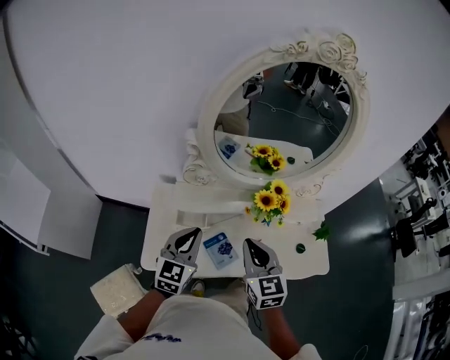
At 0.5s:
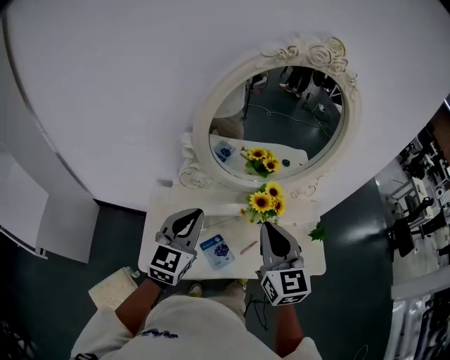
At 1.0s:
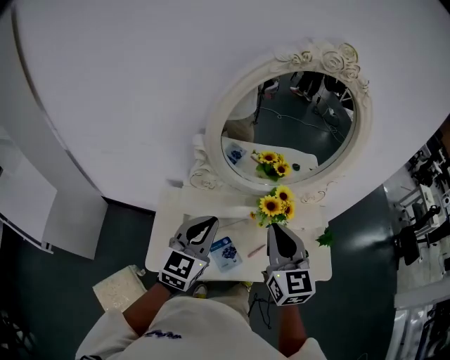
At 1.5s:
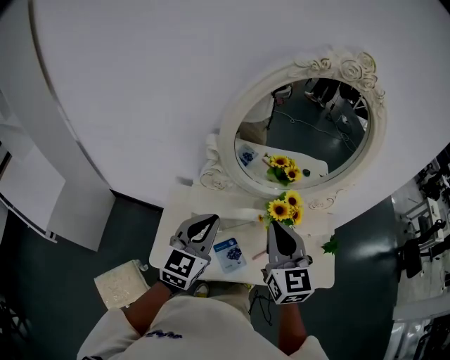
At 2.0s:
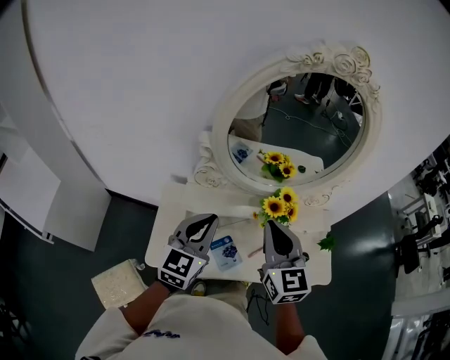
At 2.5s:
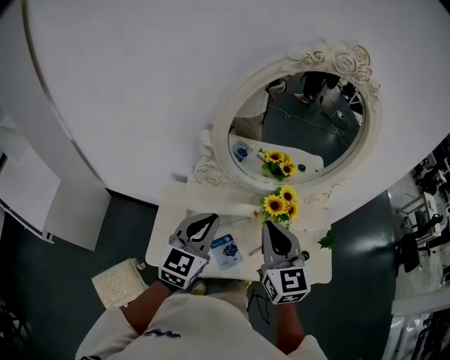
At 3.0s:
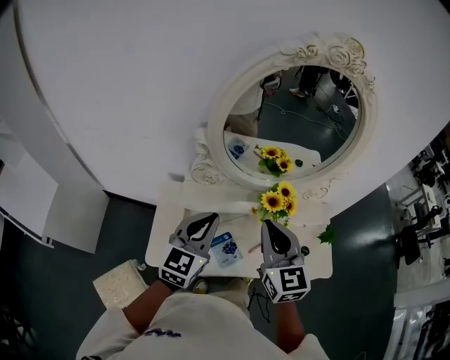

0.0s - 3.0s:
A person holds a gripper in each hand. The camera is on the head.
0.0s - 1.5s: Both grippers travel together upward, some 10 cm.
1.5s - 3.0s: The grippers stay close to where they were, moving slightly.

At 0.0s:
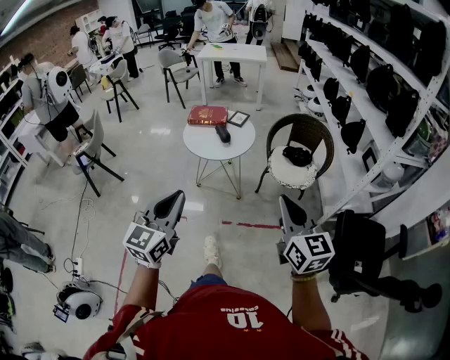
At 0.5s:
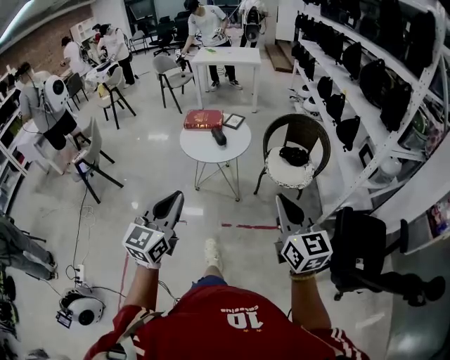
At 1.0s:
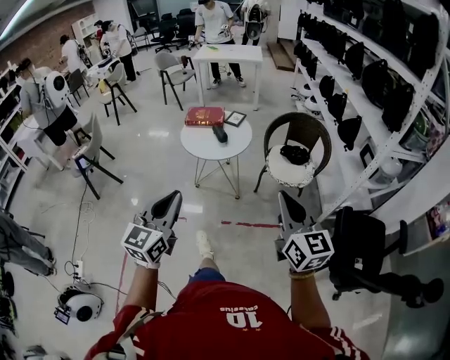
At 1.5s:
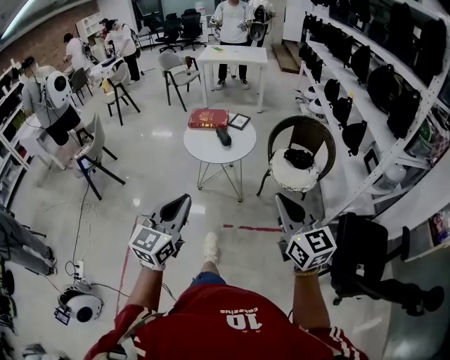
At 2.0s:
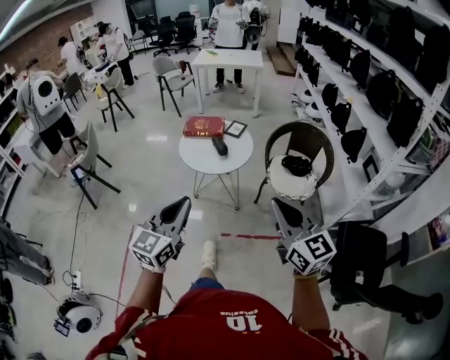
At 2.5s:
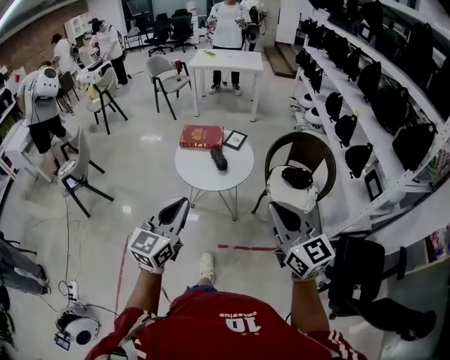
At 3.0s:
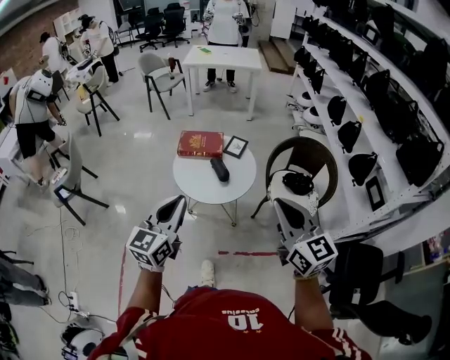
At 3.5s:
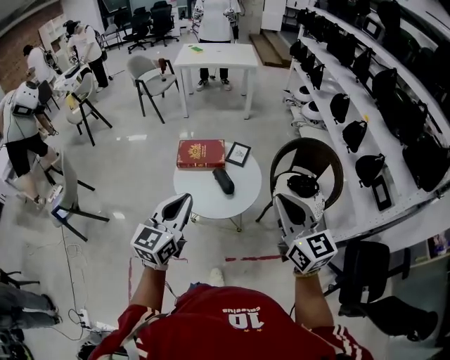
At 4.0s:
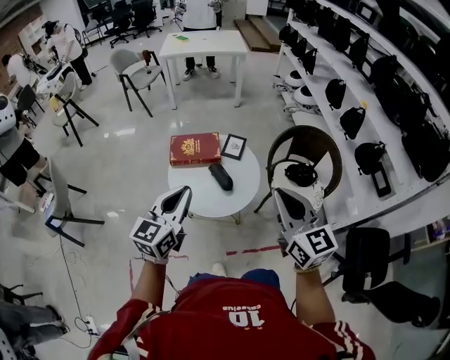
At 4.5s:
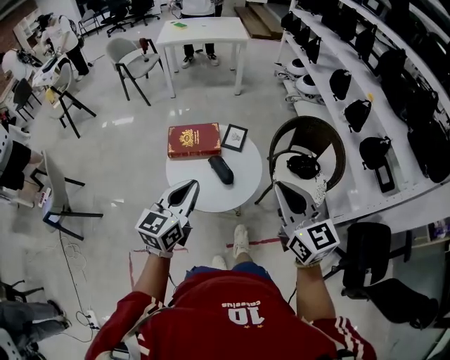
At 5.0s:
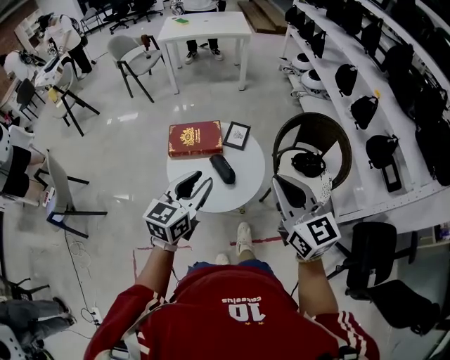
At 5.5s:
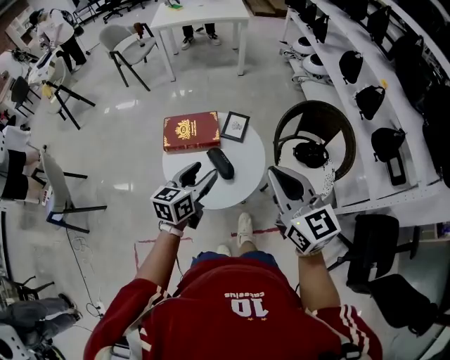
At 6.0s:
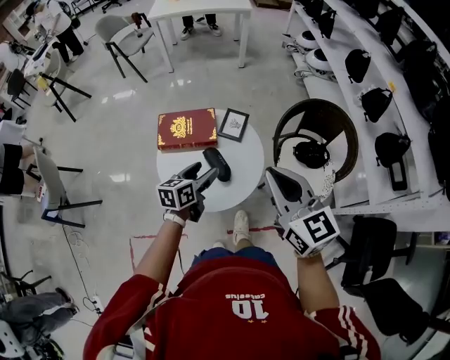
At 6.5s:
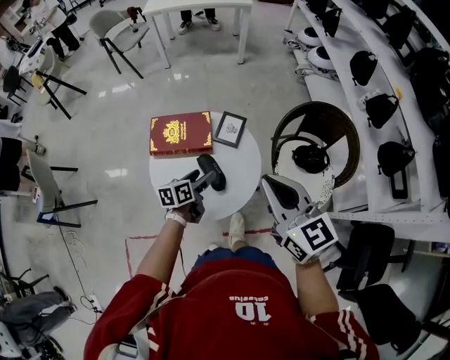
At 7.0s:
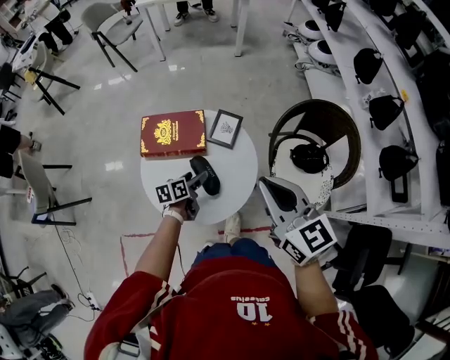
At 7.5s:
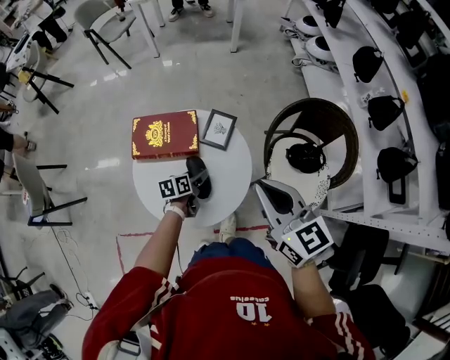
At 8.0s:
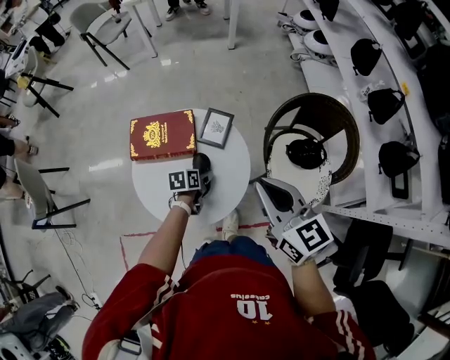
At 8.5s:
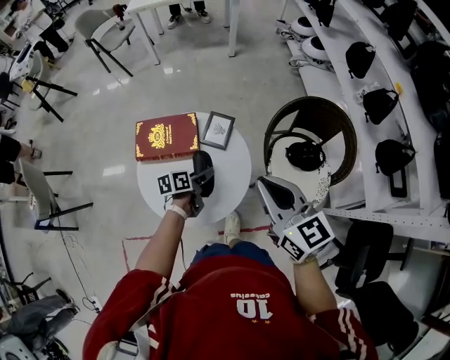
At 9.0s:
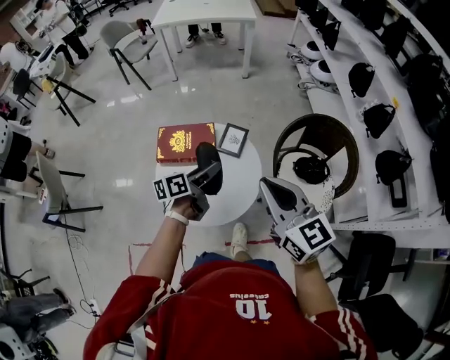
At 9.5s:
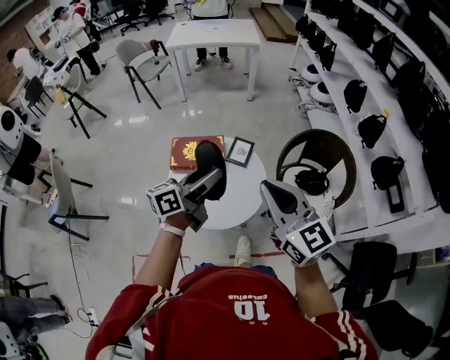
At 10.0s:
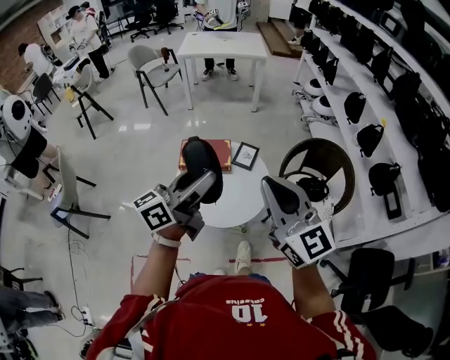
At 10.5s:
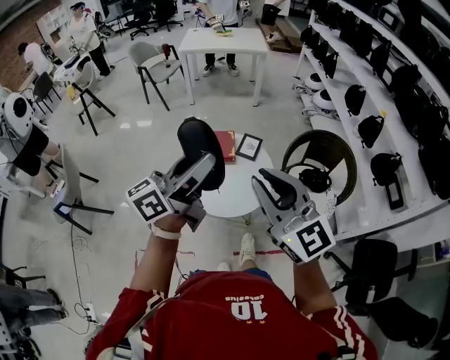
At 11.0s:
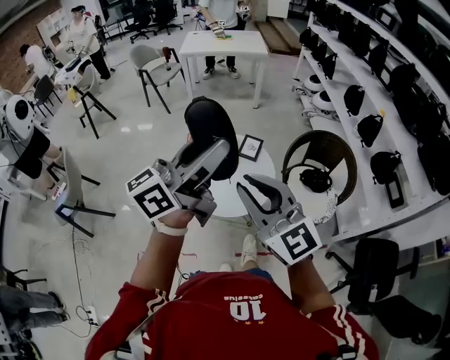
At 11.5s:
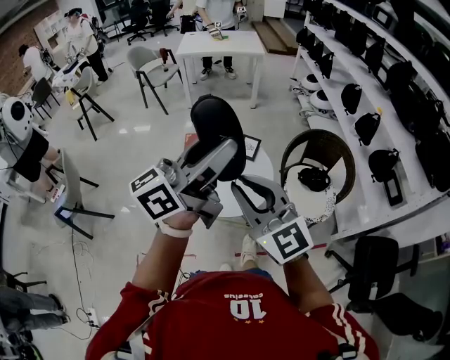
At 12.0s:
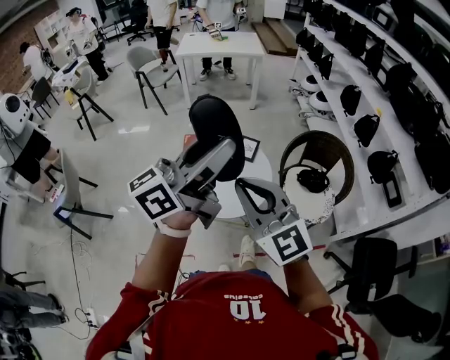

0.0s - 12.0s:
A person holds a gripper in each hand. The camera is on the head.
0.0s - 2.0s: The two grippers go roughly 5 cm forward.
2.0s - 4.0s: The two grippers go roughly 40 cm forward.
4.0s - 6.0s: The left gripper is displaced downward and forward by some 30 cm, changes its angle by some 30 degrees, and opens its fingers. The right gripper goes roughly 15 cm forward.
6.0s - 8.0s: The left gripper is displaced downward and forward by some 25 cm, and turns by some 30 degrees. The right gripper travels forward and downward by roughly 15 cm.
8.0s - 10.0s: The right gripper heads upward, backward and to the left, covering some 30 cm, and swivels about 30 degrees. The left gripper moves upward and backward, some 60 cm, and angles its fingers upward, by about 70 degrees.
10.0s - 12.0s: The right gripper goes roughly 10 cm to the left and backward. Meanwhile the left gripper is displaced upward and backward by about 15 cm.

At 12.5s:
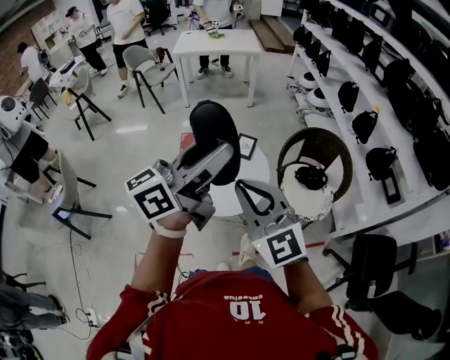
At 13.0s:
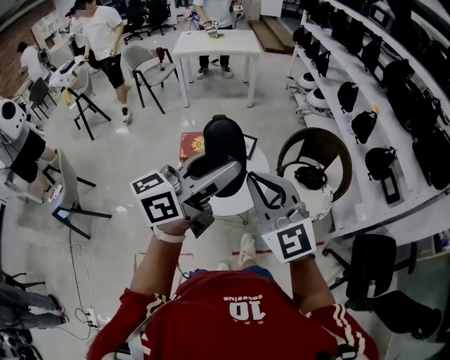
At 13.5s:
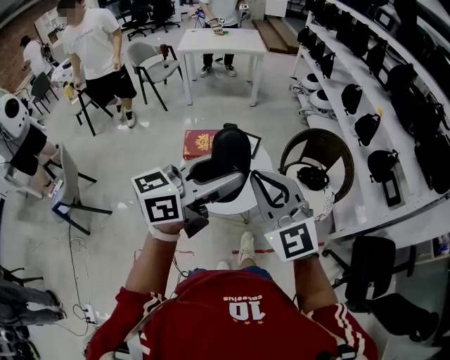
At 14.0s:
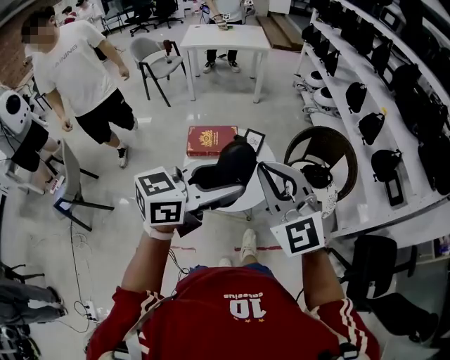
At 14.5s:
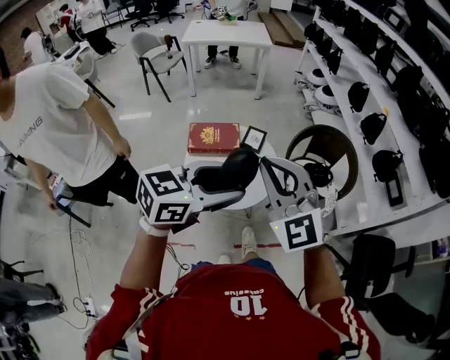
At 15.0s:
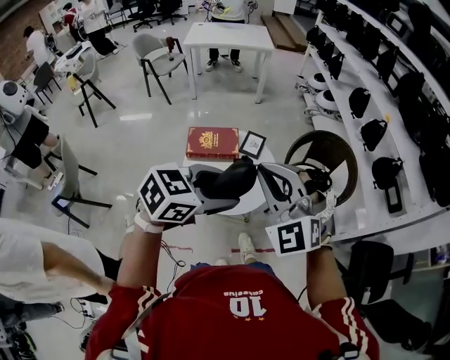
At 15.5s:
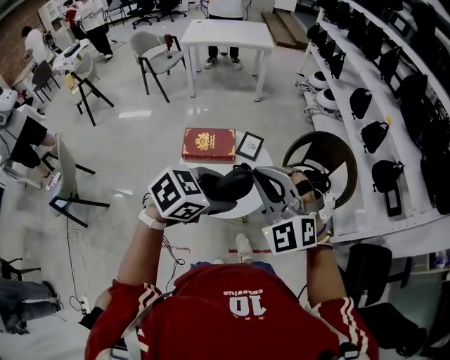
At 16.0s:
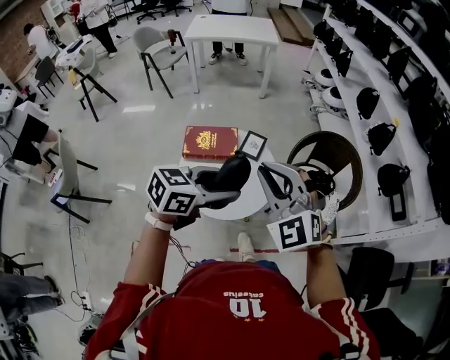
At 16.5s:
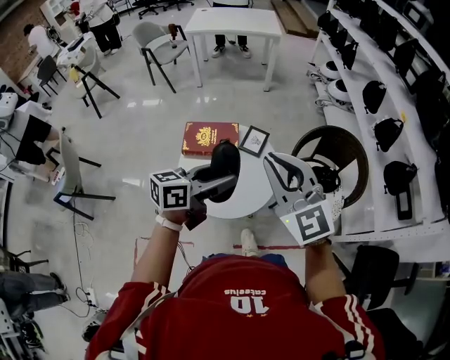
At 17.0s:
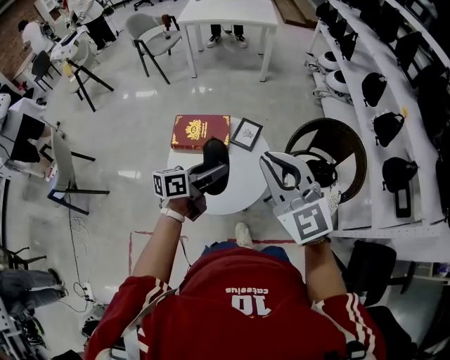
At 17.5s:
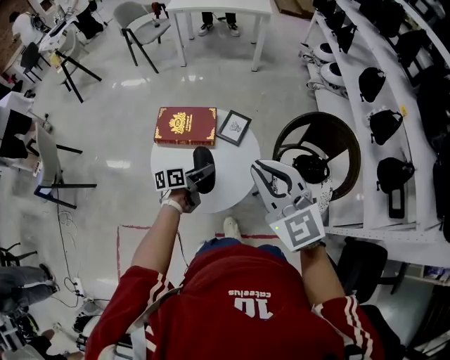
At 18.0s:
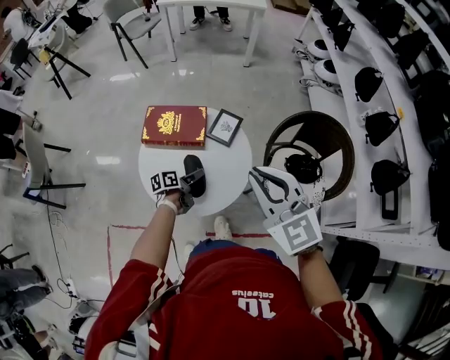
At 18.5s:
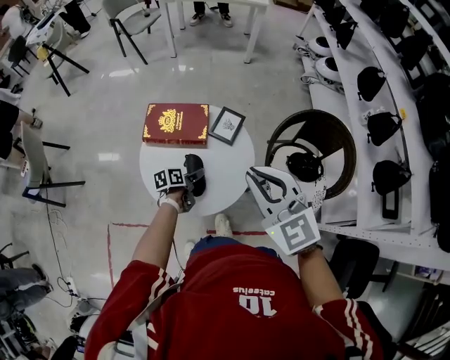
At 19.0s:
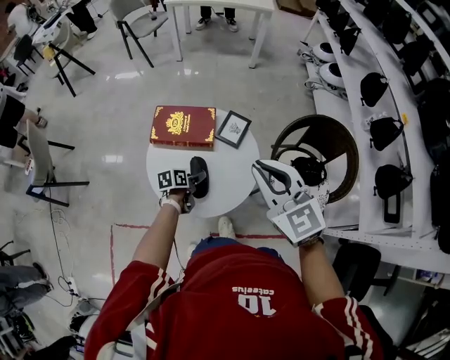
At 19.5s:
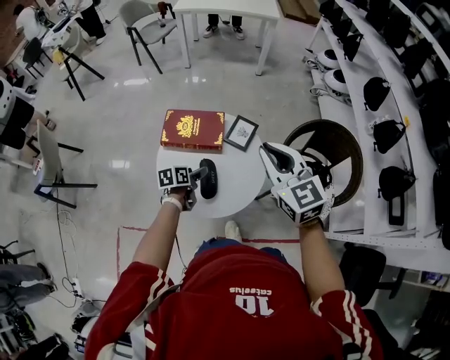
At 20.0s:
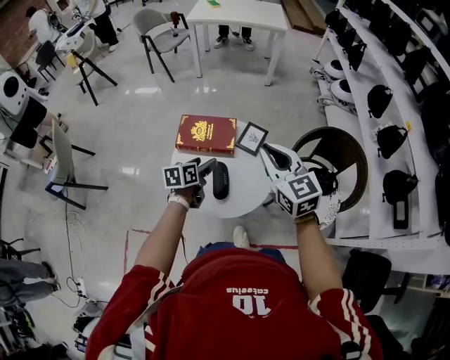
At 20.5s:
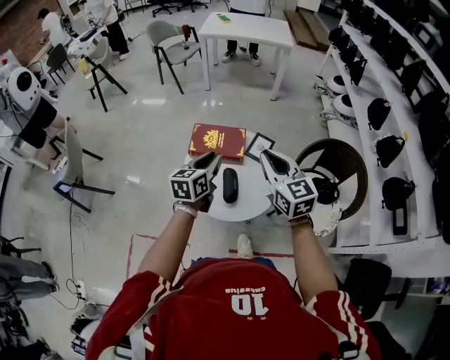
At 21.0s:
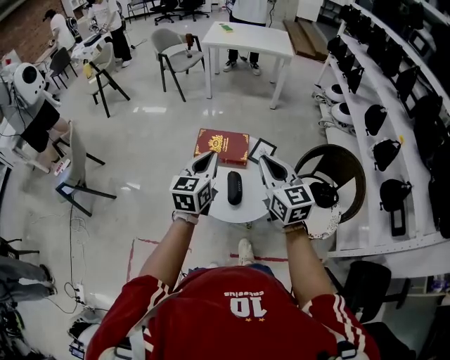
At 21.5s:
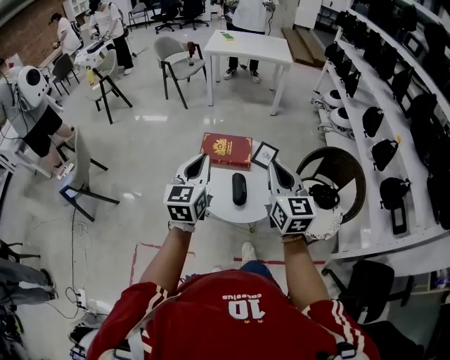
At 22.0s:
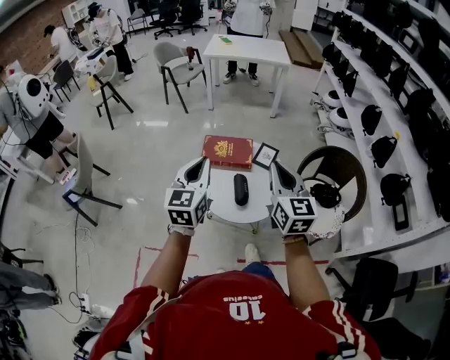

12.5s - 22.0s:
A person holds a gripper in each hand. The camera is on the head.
12.5s - 14.5s: The left gripper is displaced downward by some 10 cm, and tips its fingers downward by some 30 degrees.
14.5s - 16.5s: The left gripper heads forward and downward, covering about 20 cm, and rotates roughly 30 degrees; the right gripper goes some 10 cm forward.
16.5s - 18.0s: The right gripper moves downward, to the right and forward, approximately 15 cm, while the left gripper travels downward by approximately 40 cm, and twists some 40 degrees counterclockwise, seen from behind.
18.0s - 20.0s: The right gripper is displaced to the left and forward by about 5 cm; the left gripper shifts some 15 cm upward and to the left, and rotates roughly 30 degrees.
20.0s - 22.0s: The right gripper shifts about 15 cm backward, upward and to the left, and turns by roughly 20 degrees. Meanwhile the left gripper travels upward and backward by about 30 cm, swivels about 40 degrees, and closes.

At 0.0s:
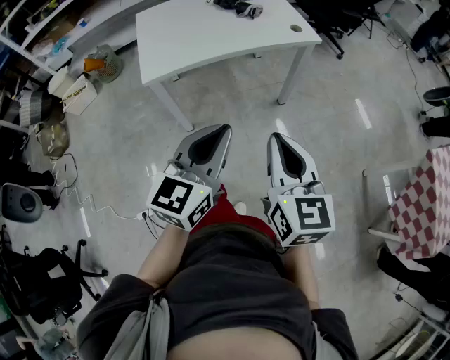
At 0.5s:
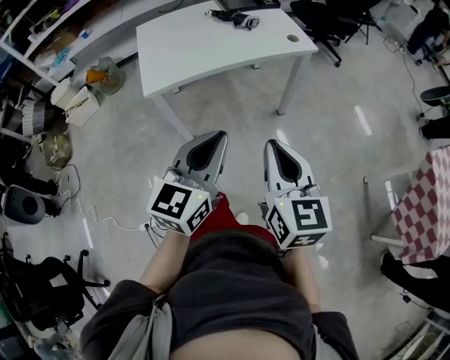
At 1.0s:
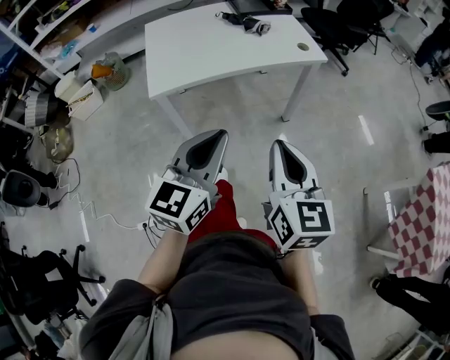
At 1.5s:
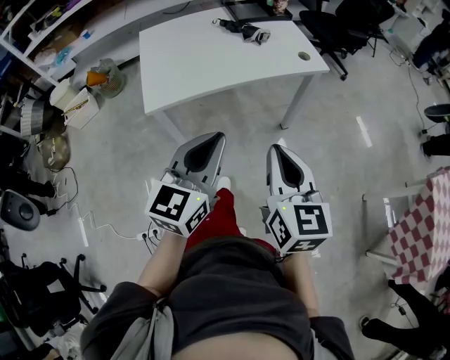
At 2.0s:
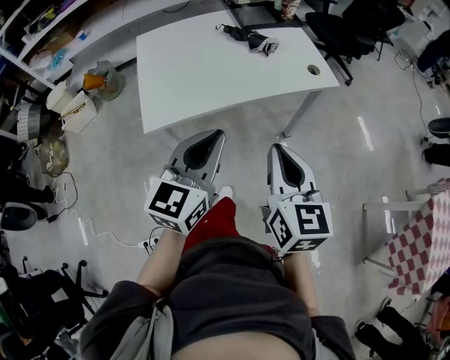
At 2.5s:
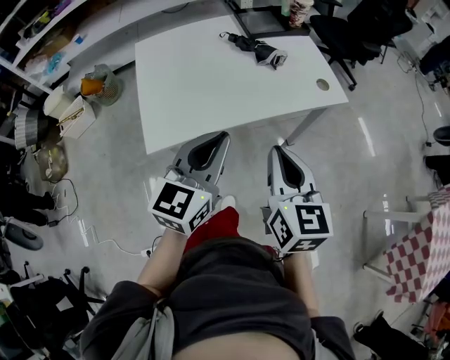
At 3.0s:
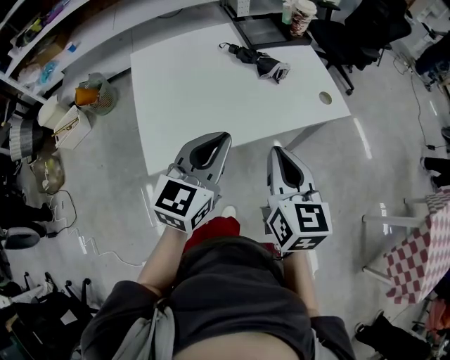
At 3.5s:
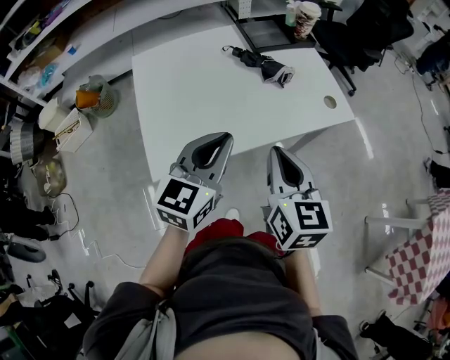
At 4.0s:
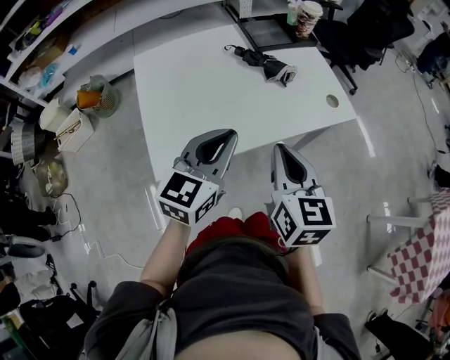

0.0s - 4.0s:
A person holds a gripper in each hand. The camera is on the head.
0.0s - 2.0s: The two grippers go some 20 cm forward.
2.0s - 4.0s: The two grippers go about 20 cm forward and to the left.
